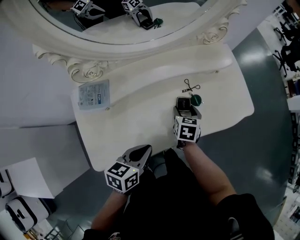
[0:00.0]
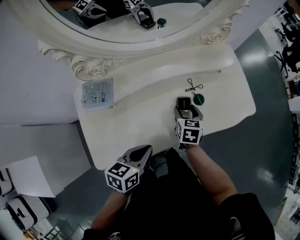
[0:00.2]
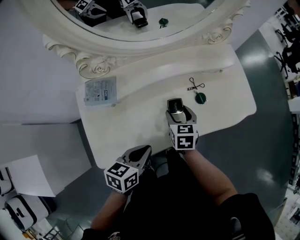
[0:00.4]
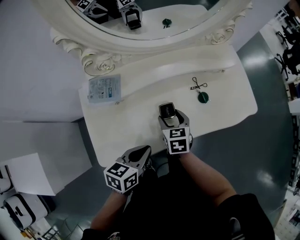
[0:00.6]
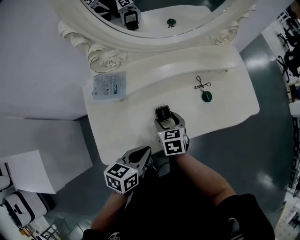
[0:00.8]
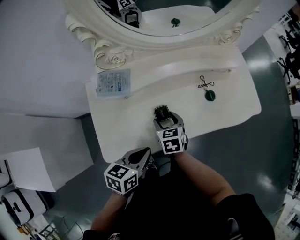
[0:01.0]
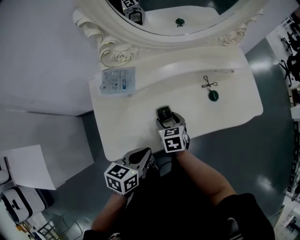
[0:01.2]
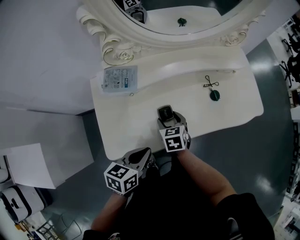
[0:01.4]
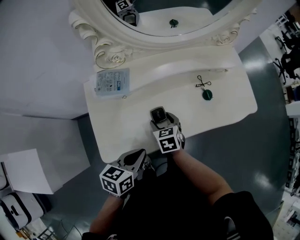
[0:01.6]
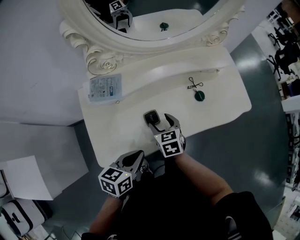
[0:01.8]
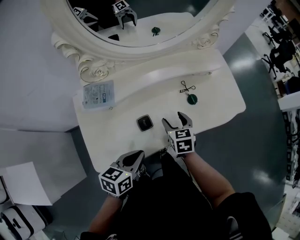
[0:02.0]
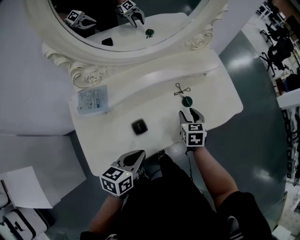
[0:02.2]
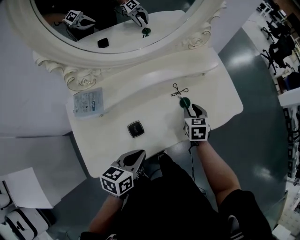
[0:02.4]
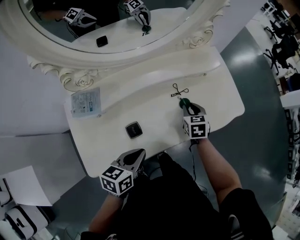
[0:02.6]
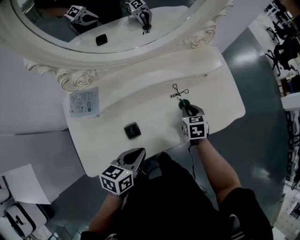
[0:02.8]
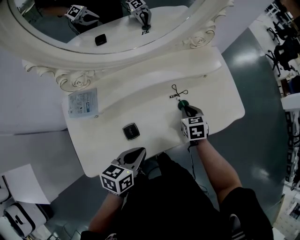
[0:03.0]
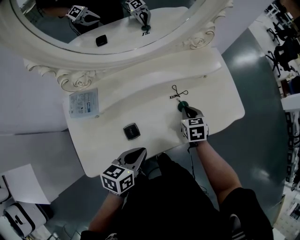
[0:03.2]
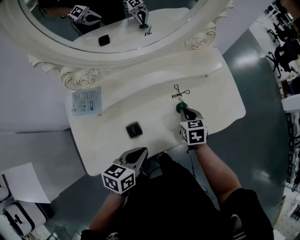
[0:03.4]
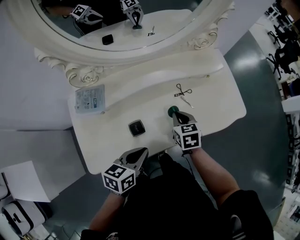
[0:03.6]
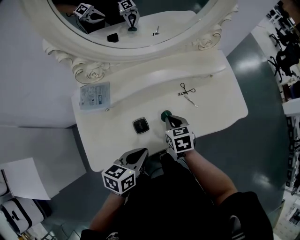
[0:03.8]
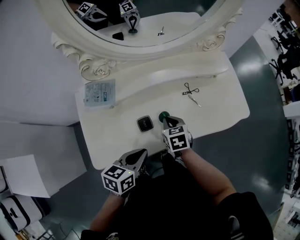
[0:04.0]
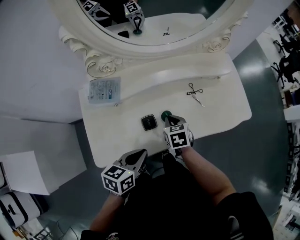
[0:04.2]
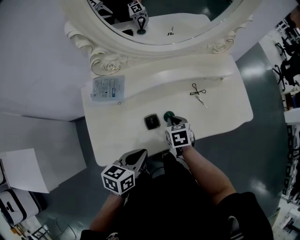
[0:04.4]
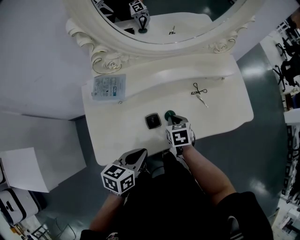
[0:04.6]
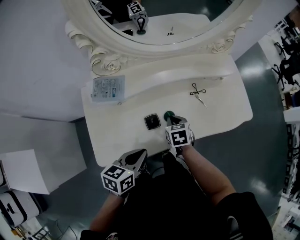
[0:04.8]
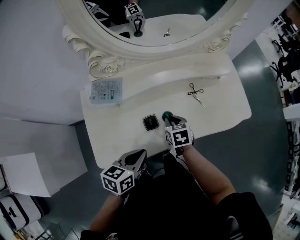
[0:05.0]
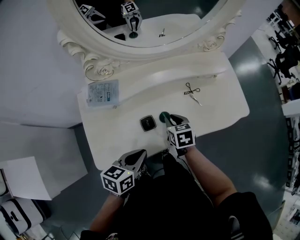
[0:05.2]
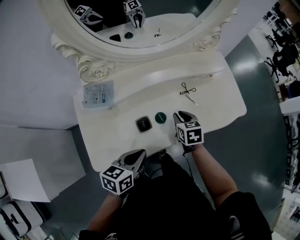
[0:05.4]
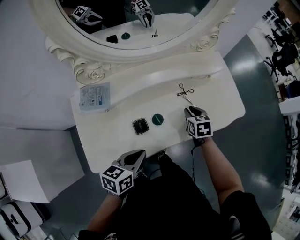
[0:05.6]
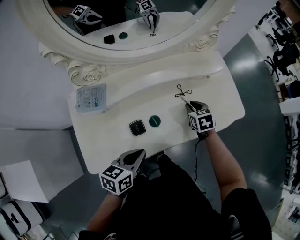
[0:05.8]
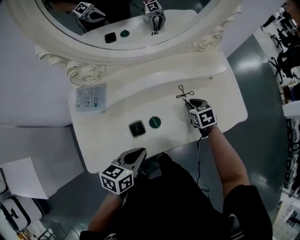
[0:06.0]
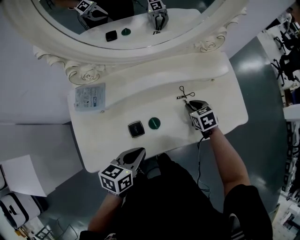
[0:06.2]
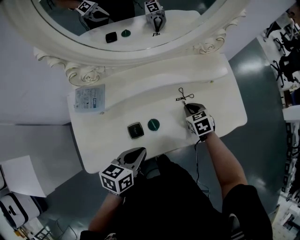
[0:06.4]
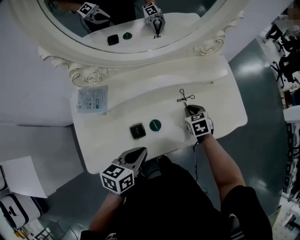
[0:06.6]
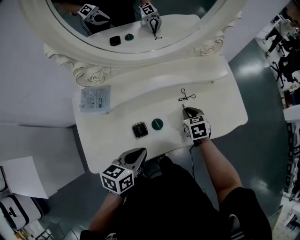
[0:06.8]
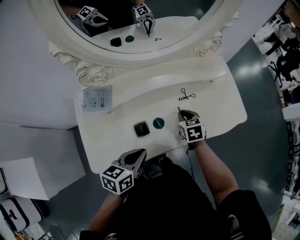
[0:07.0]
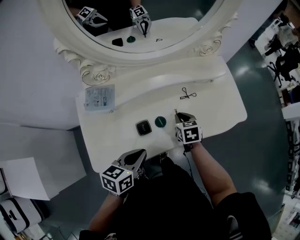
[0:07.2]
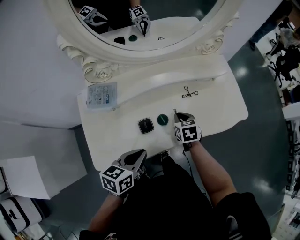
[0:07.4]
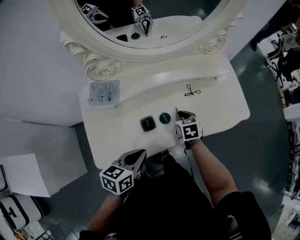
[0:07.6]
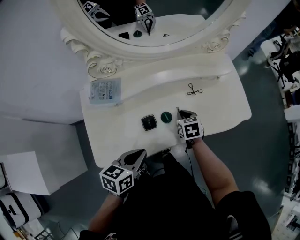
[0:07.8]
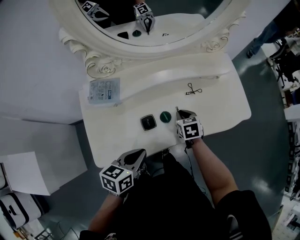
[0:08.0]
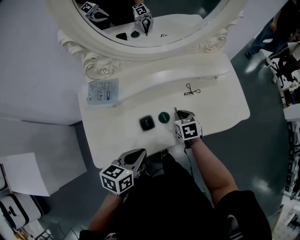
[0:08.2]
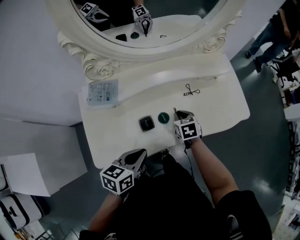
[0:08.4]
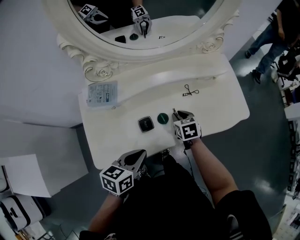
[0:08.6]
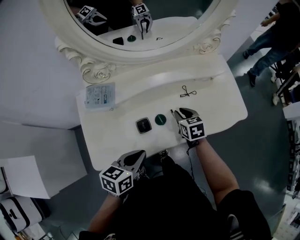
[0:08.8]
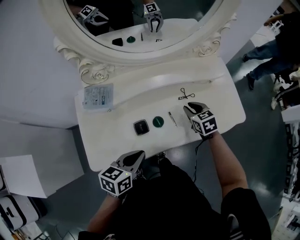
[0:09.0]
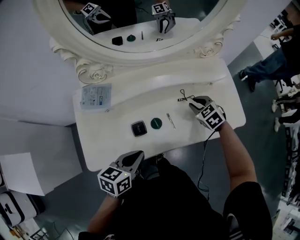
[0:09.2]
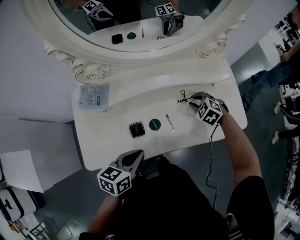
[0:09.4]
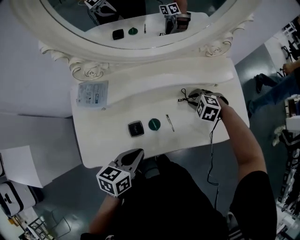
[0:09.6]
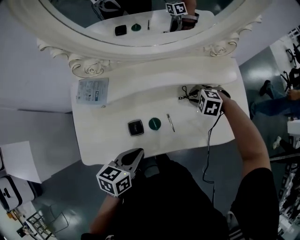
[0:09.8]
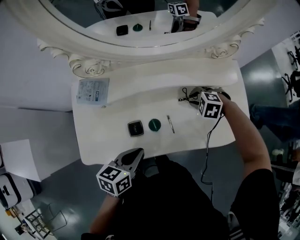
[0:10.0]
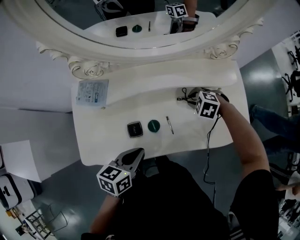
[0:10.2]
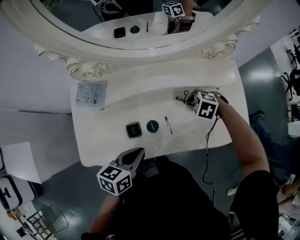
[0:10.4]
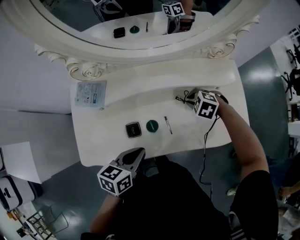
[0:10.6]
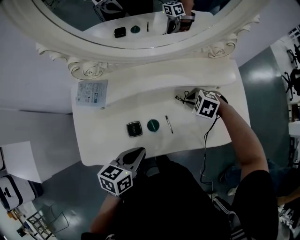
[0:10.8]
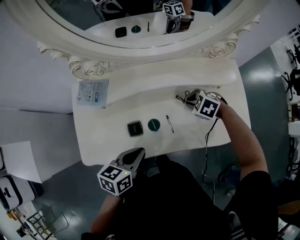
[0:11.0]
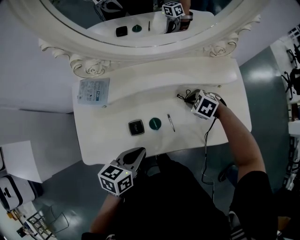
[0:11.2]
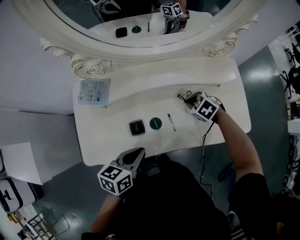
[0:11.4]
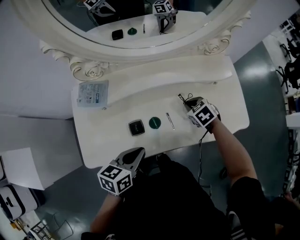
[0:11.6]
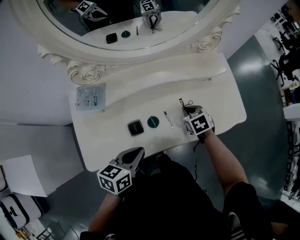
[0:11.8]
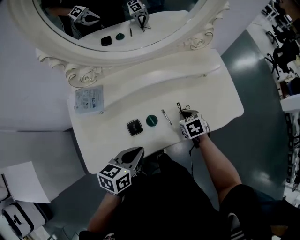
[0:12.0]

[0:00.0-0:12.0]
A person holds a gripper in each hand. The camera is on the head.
0:00.0 to 0:01.6: The left gripper moves backward and to the left, approximately 10 cm. Meanwhile the right gripper moves to the left and backward, about 20 cm, and changes its angle by approximately 30 degrees.
0:01.6 to 0:03.0: The right gripper shifts about 30 cm to the right and forward, and closes its fingers, while the left gripper goes about 15 cm forward and to the right.
0:03.0 to 0:04.4: The right gripper moves to the left and backward, approximately 20 cm. Meanwhile the left gripper is displaced backward and to the left by approximately 10 cm.
0:04.4 to 0:06.0: The right gripper shifts about 20 cm to the right and forward. Meanwhile the left gripper shifts some 10 cm forward and to the right.
0:06.0 to 0:07.6: The left gripper ends up approximately 5 cm from where it was. The right gripper heads backward and to the left, covering approximately 10 cm.
0:07.6 to 0:09.0: The right gripper travels forward and to the right by roughly 10 cm.
0:09.0 to 0:10.4: The right gripper shifts by some 5 cm, and twists some 50 degrees counterclockwise, seen from behind, while the left gripper moves about 5 cm.
0:10.4 to 0:12.0: The right gripper moves some 10 cm, and rotates around the line of its fingers by some 60 degrees, clockwise from behind.

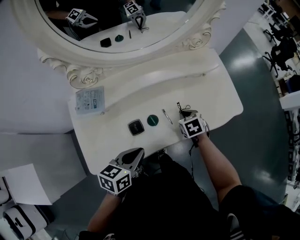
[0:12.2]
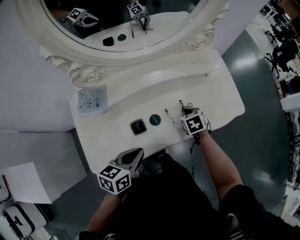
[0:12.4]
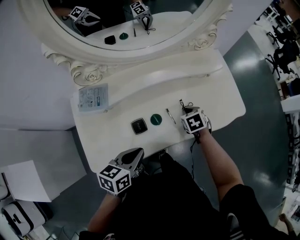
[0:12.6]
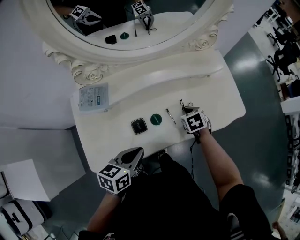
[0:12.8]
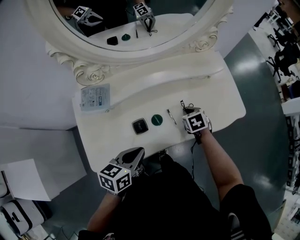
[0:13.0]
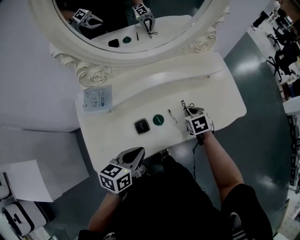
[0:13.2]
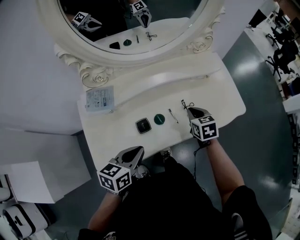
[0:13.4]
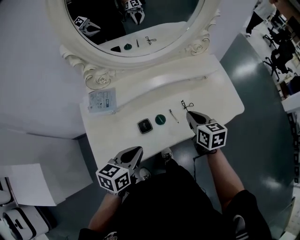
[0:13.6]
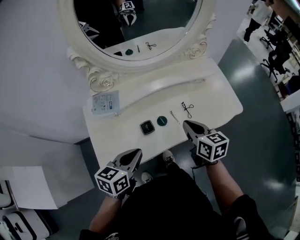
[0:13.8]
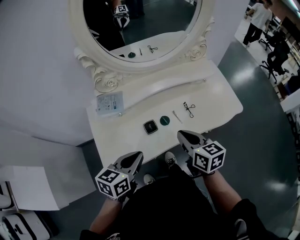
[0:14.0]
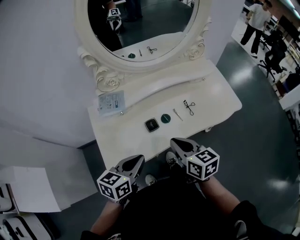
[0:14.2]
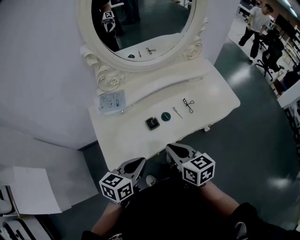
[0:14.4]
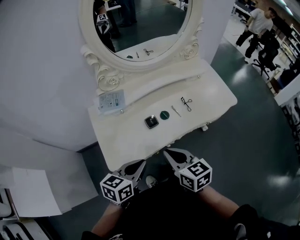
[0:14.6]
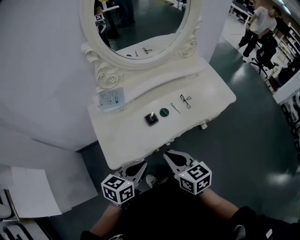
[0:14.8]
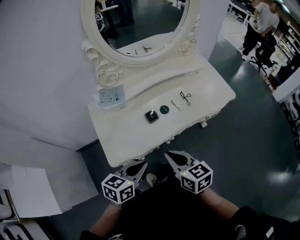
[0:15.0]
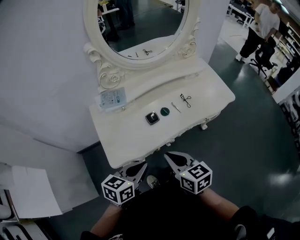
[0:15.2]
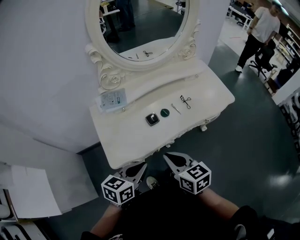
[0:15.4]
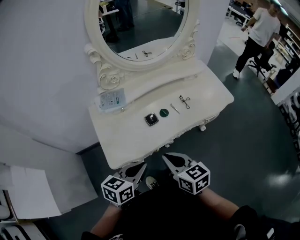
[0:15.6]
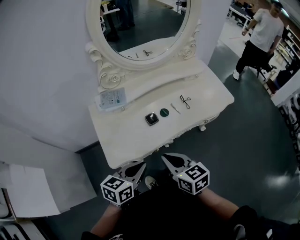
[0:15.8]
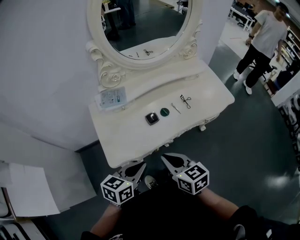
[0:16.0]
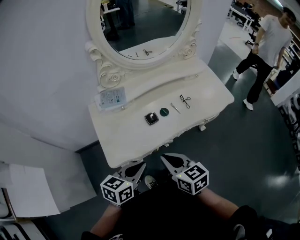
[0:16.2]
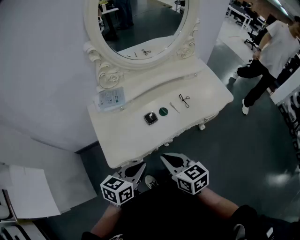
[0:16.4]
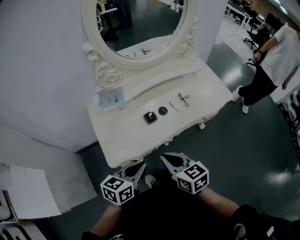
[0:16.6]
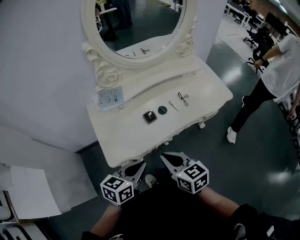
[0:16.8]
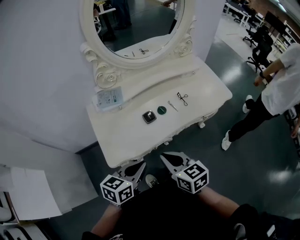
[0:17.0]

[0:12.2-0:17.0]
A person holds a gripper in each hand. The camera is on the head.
0:12.2 to 0:13.8: The left gripper goes approximately 10 cm upward and to the left; the right gripper goes some 20 cm upward and backward, and tips its fingers upward by some 30 degrees.
0:13.8 to 0:15.4: The right gripper goes roughly 25 cm backward and to the left; the left gripper heads backward, covering about 15 cm.
0:15.4 to 0:17.0: The two grippers keep their place.

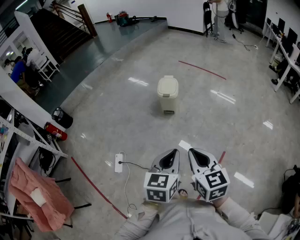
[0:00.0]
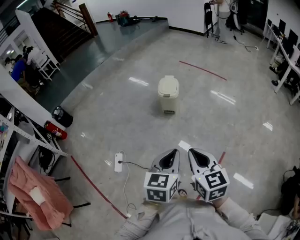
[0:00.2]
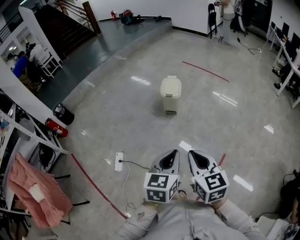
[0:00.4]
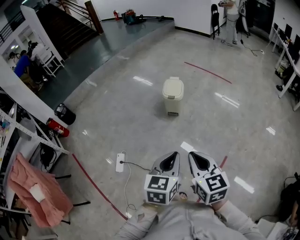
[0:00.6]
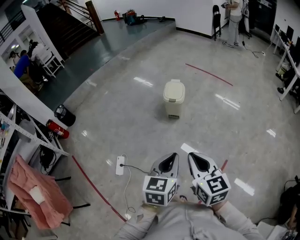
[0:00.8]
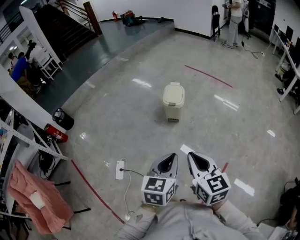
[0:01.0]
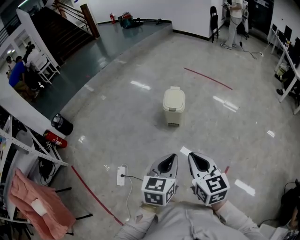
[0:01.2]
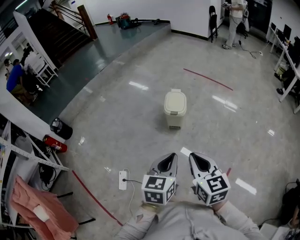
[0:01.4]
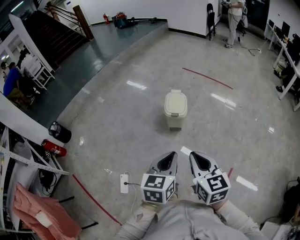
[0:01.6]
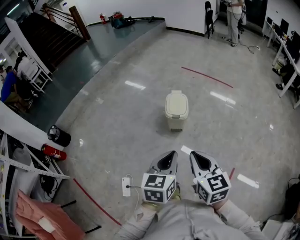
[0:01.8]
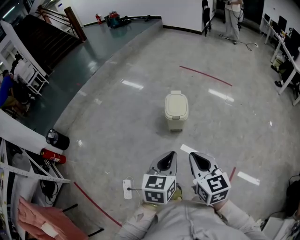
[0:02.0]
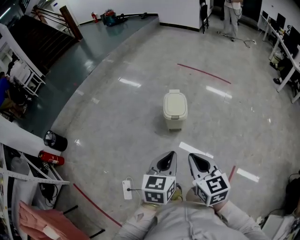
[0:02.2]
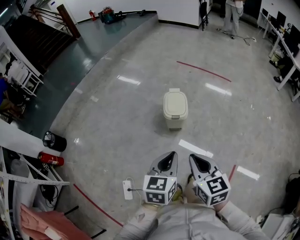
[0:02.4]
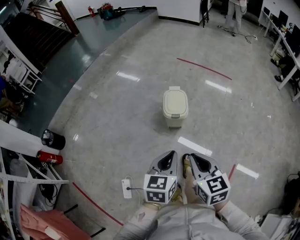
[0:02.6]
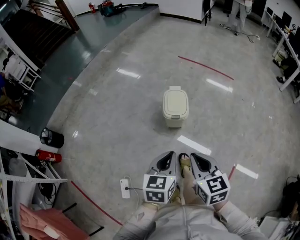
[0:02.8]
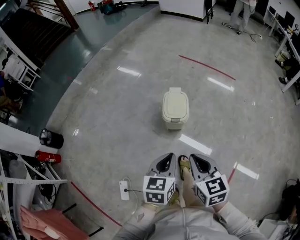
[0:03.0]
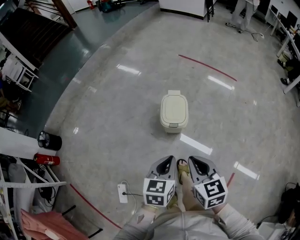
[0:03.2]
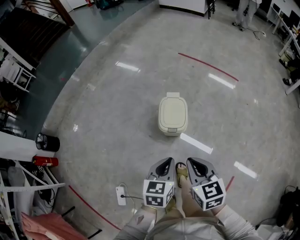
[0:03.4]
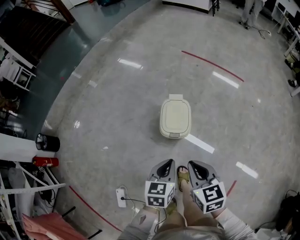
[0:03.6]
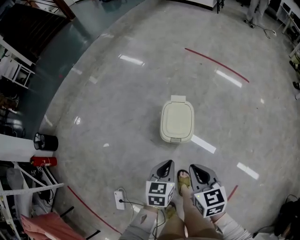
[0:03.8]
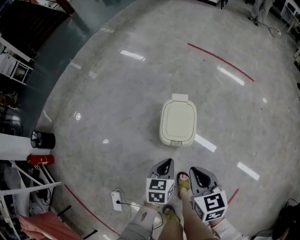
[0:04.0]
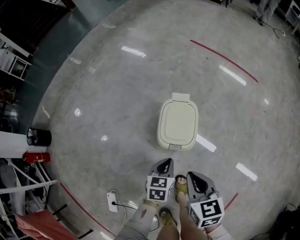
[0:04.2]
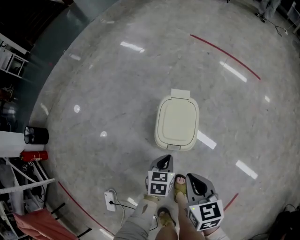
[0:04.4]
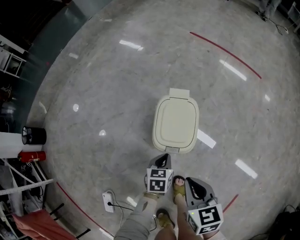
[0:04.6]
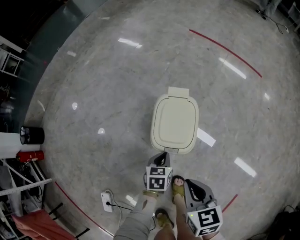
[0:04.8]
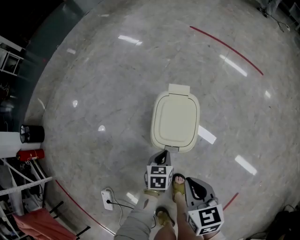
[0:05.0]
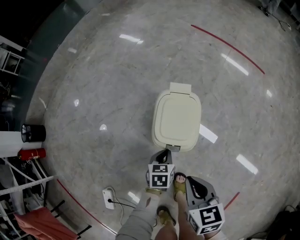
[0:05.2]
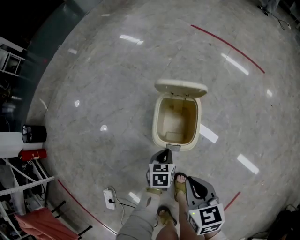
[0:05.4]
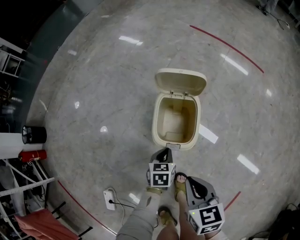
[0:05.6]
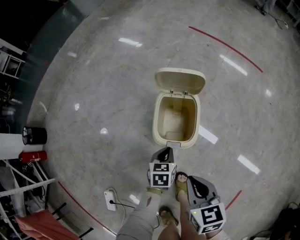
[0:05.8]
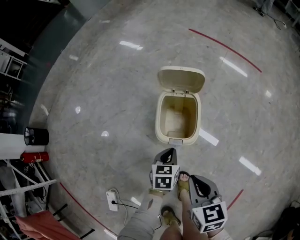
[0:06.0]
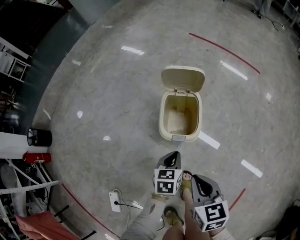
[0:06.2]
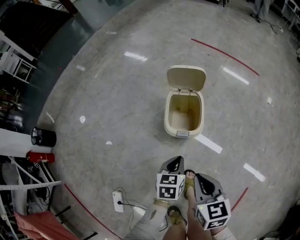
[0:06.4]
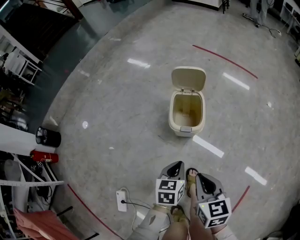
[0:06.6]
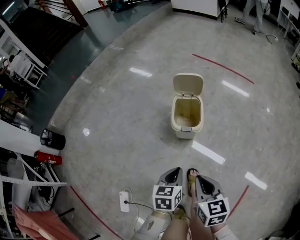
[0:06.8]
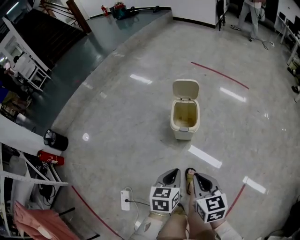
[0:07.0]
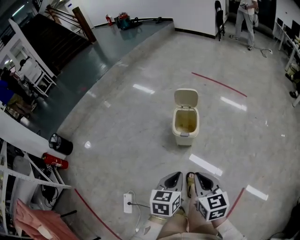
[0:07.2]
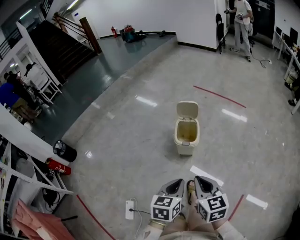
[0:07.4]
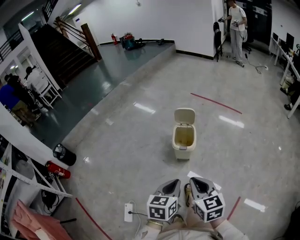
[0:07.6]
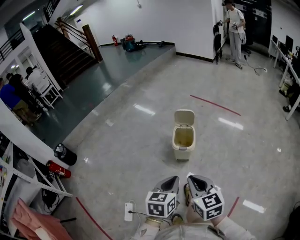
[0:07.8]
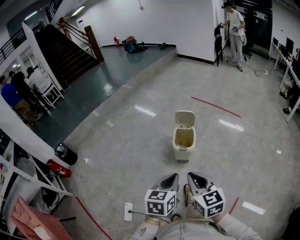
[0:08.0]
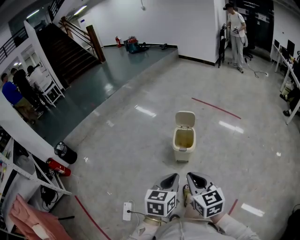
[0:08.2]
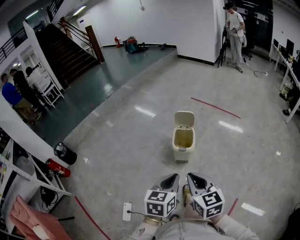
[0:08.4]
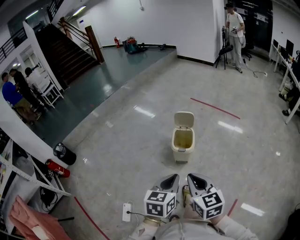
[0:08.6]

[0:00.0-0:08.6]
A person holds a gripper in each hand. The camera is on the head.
0:00.0 to 0:01.4: Both grippers move forward, some 20 cm.
0:01.4 to 0:02.8: Both grippers travel together forward, some 20 cm.
0:02.8 to 0:04.4: The right gripper goes roughly 35 cm forward and downward. Meanwhile the left gripper moves downward and forward, some 50 cm, and rotates some 20 degrees.
0:04.4 to 0:05.8: The left gripper heads downward, covering approximately 5 cm.
0:05.8 to 0:07.2: The left gripper travels upward and backward by roughly 50 cm; the right gripper heads backward and upward, covering some 30 cm.
0:07.2 to 0:08.6: The two grippers go approximately 15 cm upward.
